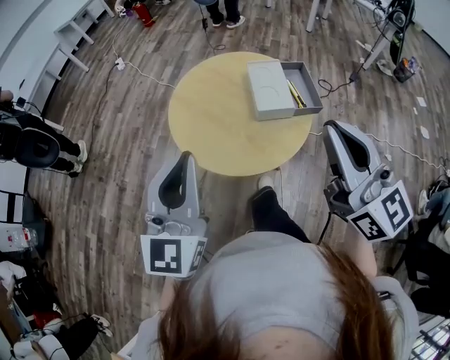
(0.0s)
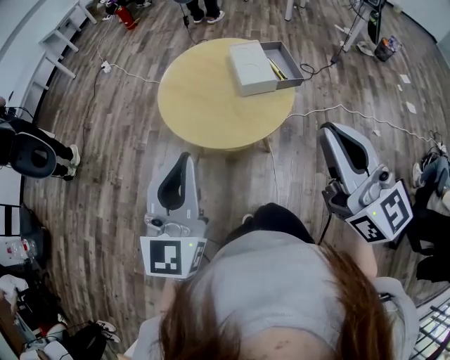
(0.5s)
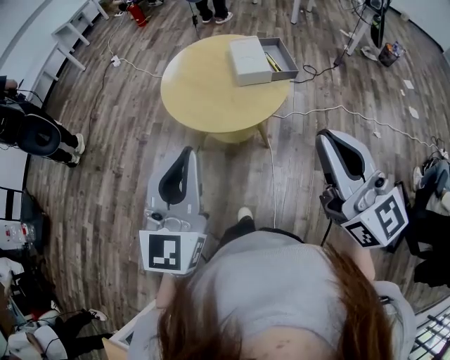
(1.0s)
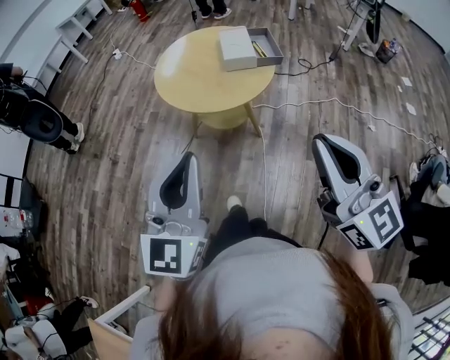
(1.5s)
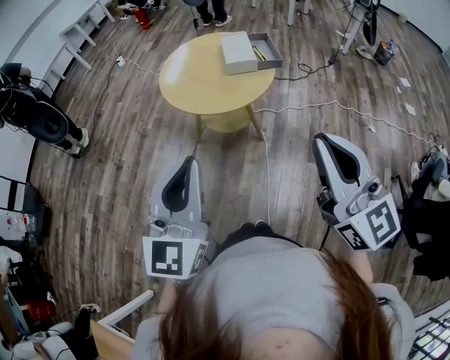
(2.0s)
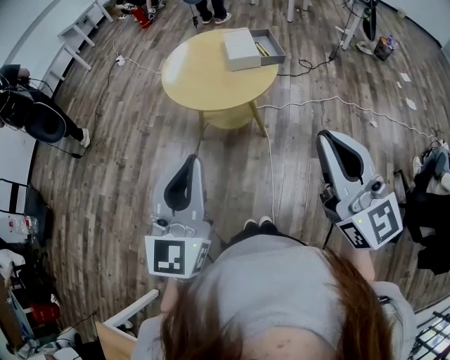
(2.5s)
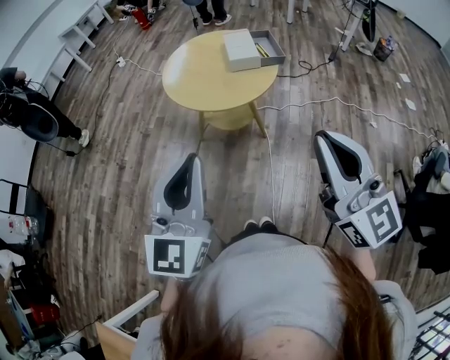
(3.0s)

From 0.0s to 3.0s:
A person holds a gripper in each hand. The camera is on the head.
From 0.0s to 1.5s: Both grippers travel together backward, some 25 cm.
From 1.5s to 3.0s: The grippers stay close to where they were, moving slightly.

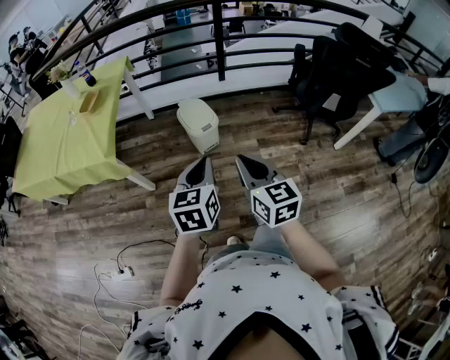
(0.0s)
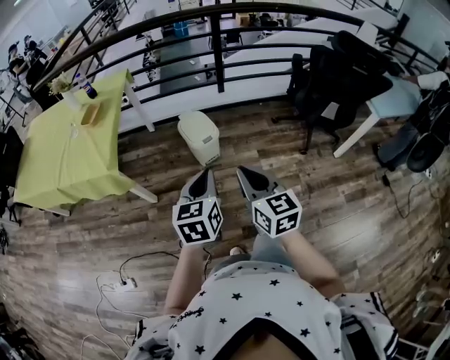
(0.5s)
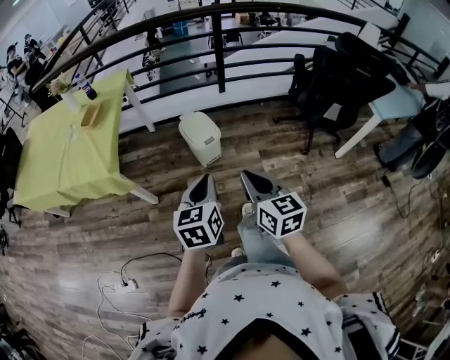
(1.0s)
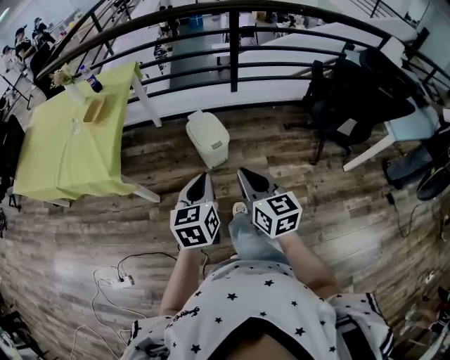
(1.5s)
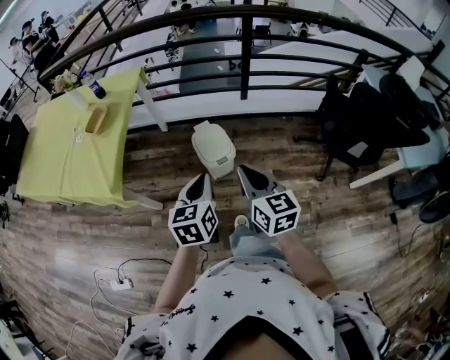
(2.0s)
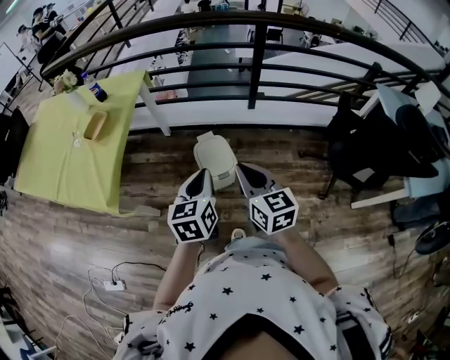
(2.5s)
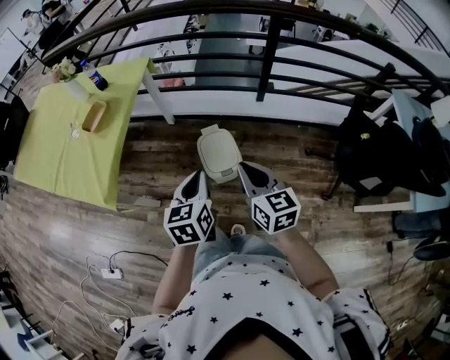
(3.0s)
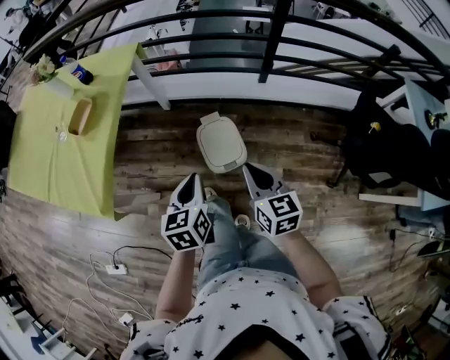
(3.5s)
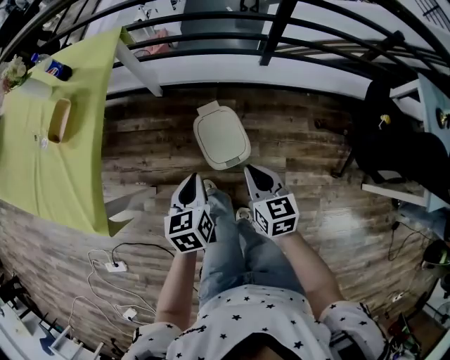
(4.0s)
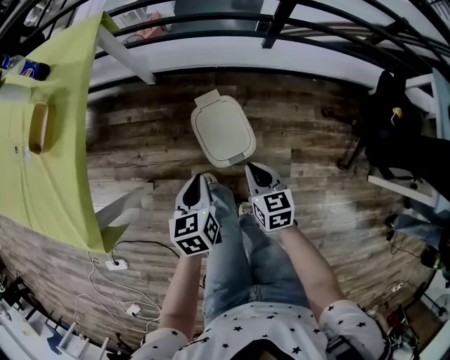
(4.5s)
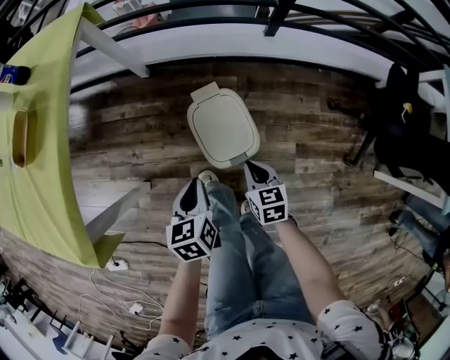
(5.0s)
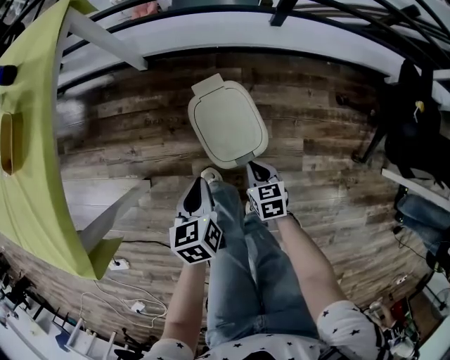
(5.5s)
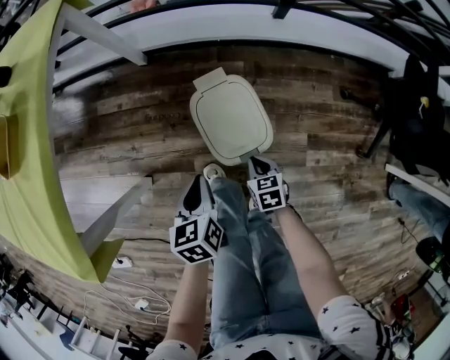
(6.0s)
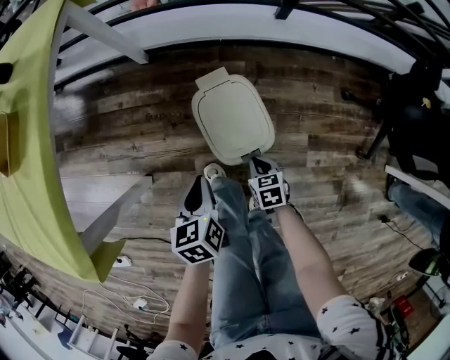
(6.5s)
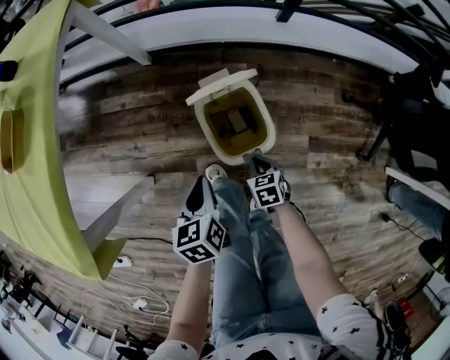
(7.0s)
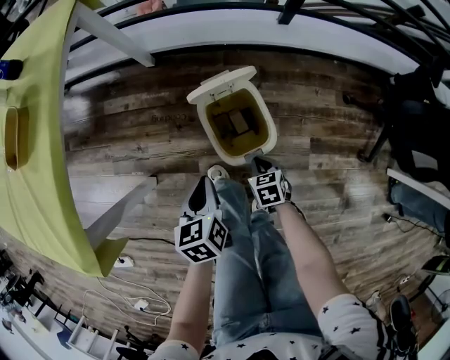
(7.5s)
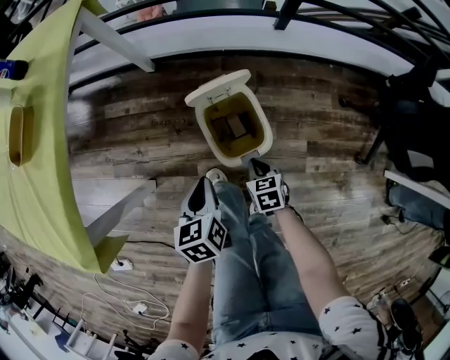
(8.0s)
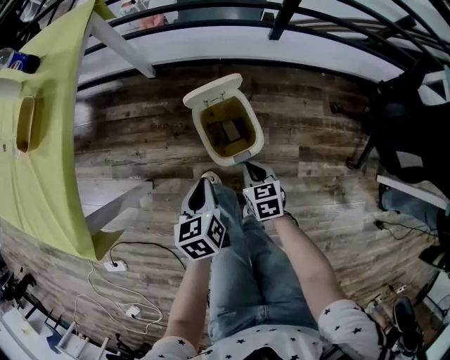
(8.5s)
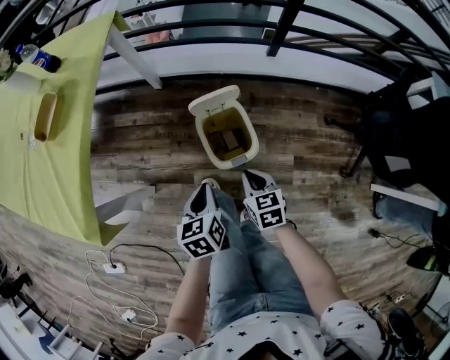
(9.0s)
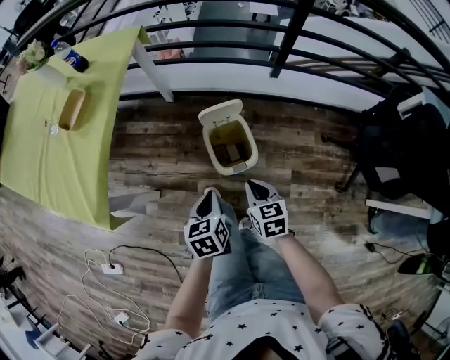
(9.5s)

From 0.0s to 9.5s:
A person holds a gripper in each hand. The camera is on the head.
From 0.0s to 2.0s: Both grippers move forward, about 20 cm.
From 2.0s to 4.0s: Both grippers move forward and downward, roughly 35 cm.
From 4.0s to 5.5s: The right gripper travels downward by approximately 35 cm, and swivels about 20 degrees; the left gripper moves downward, roughly 20 cm.
From 5.5s to 7.5s: There are only small adjustments of the grippers.
From 7.5s to 9.5s: The right gripper is displaced upward by roughly 30 cm, and swivels some 20 degrees. The left gripper travels upward and backward by some 20 cm.

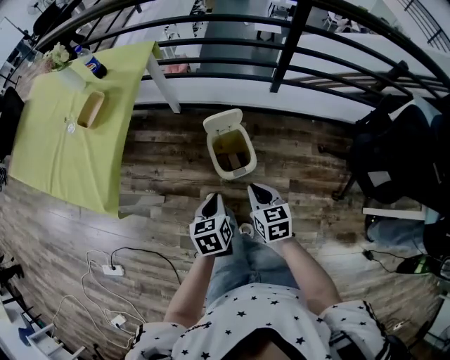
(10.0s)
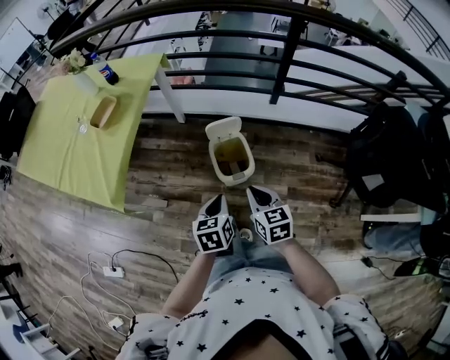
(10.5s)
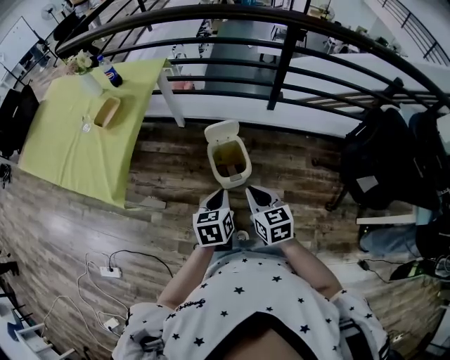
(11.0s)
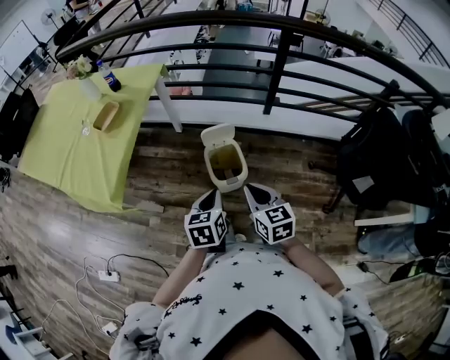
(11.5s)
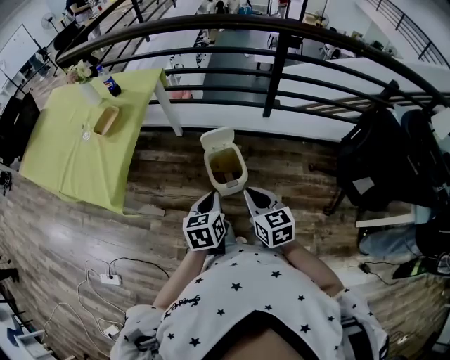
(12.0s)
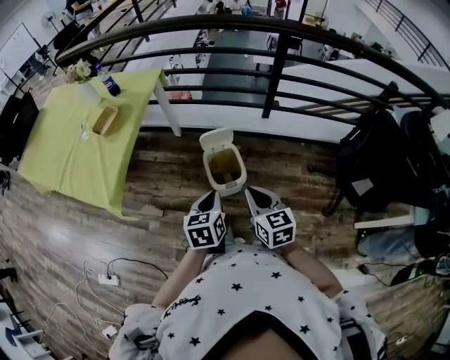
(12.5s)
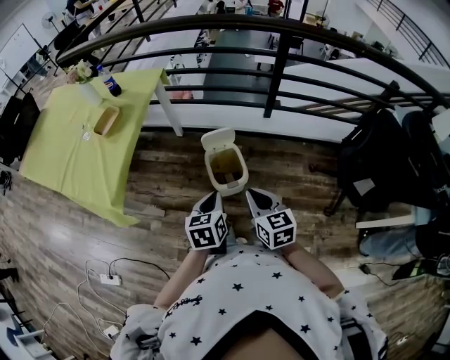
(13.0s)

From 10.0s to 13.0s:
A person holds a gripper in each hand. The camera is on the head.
From 10.0s to 11.5s: The left gripper moves upward, approximately 10 cm. The right gripper shifts roughly 15 cm upward and backward.
From 11.5s to 13.0s: Both grippers stay put.

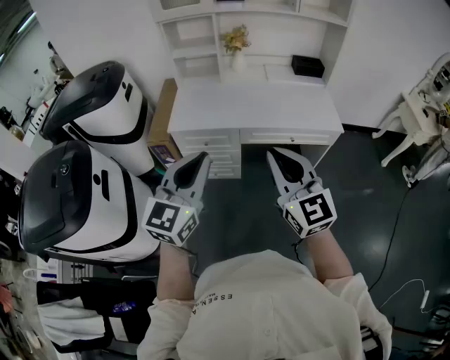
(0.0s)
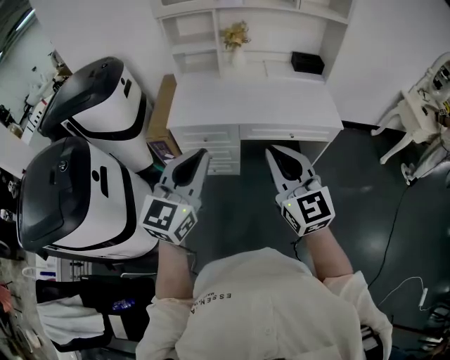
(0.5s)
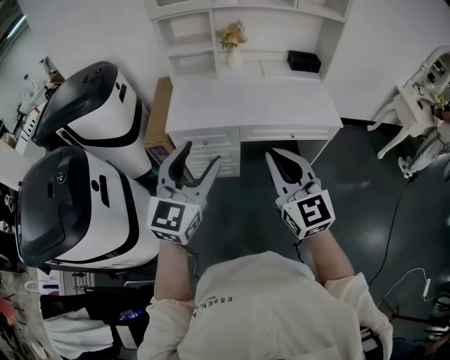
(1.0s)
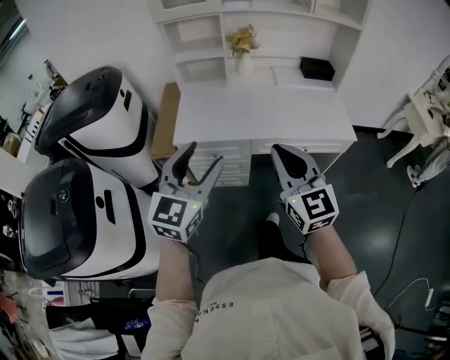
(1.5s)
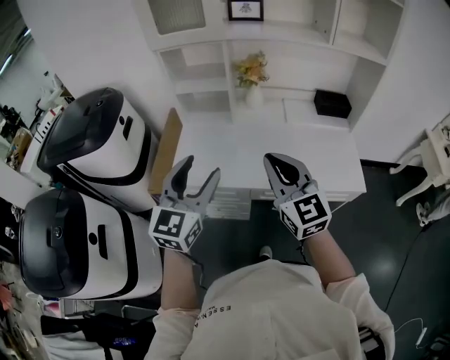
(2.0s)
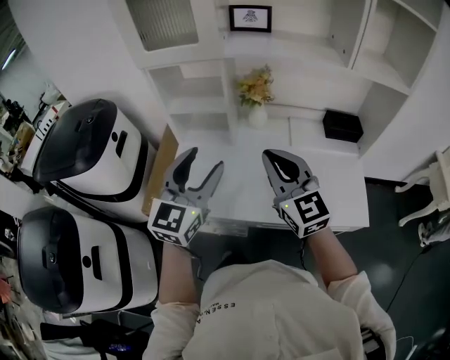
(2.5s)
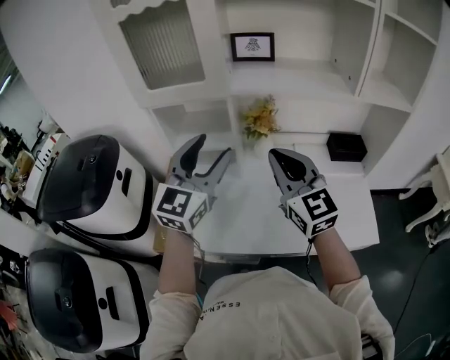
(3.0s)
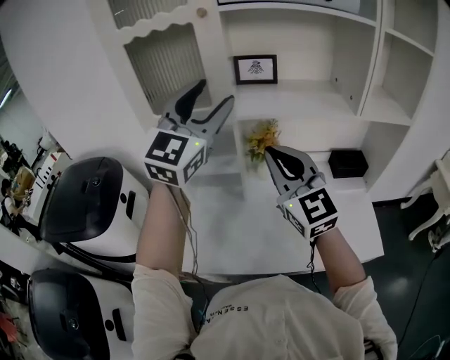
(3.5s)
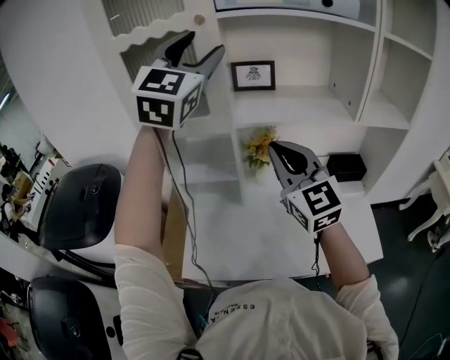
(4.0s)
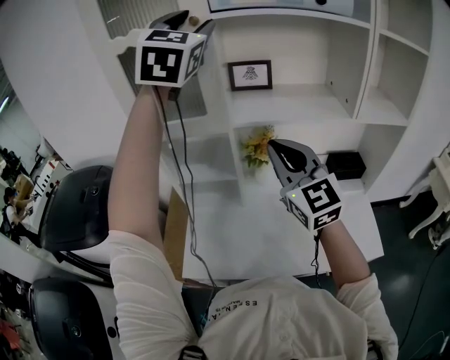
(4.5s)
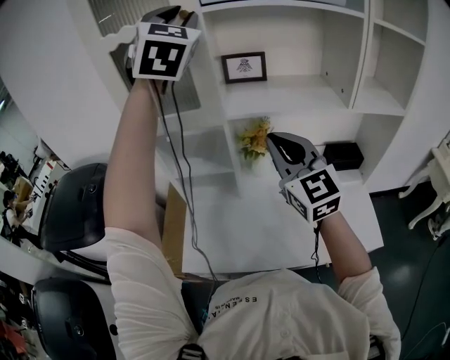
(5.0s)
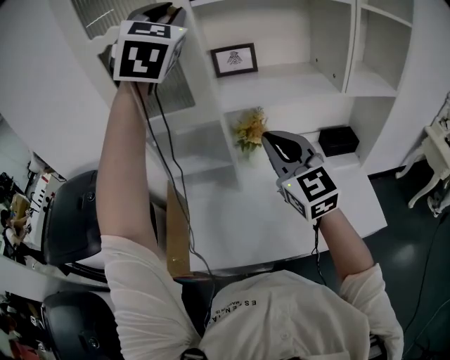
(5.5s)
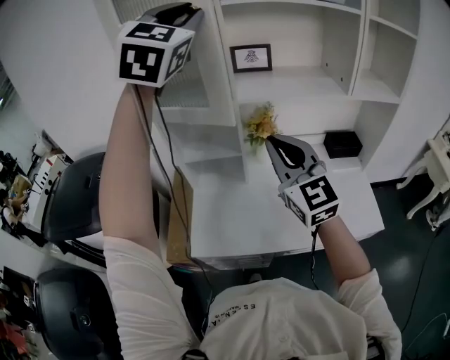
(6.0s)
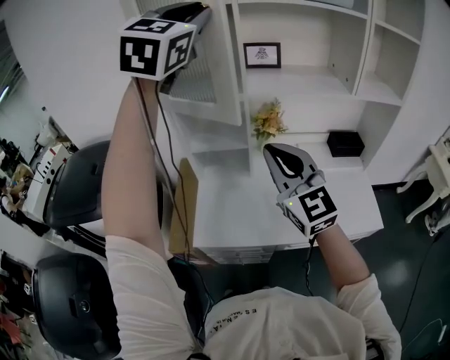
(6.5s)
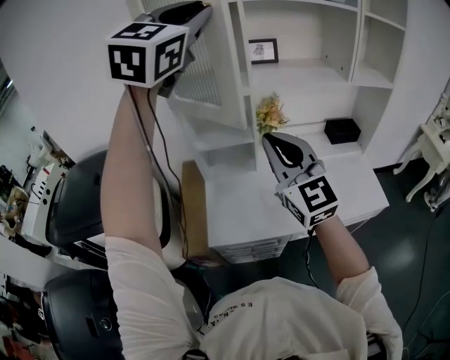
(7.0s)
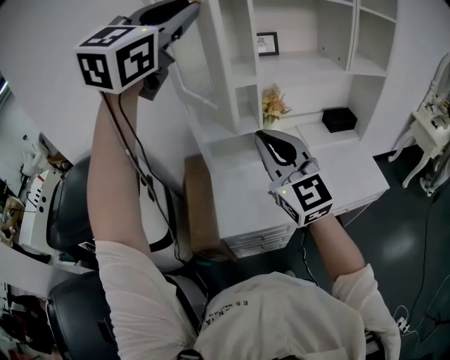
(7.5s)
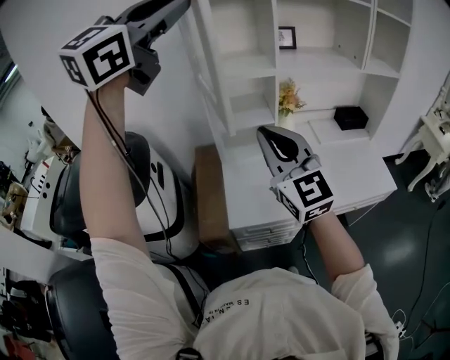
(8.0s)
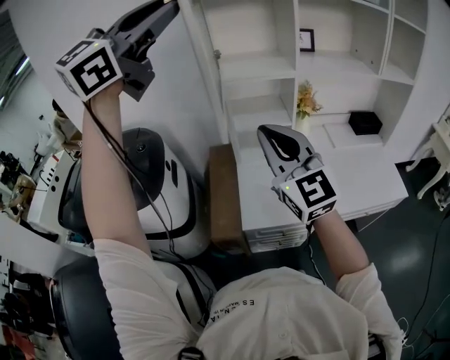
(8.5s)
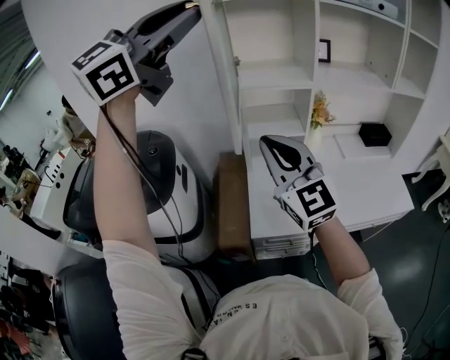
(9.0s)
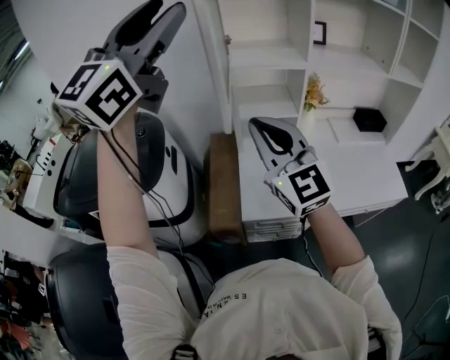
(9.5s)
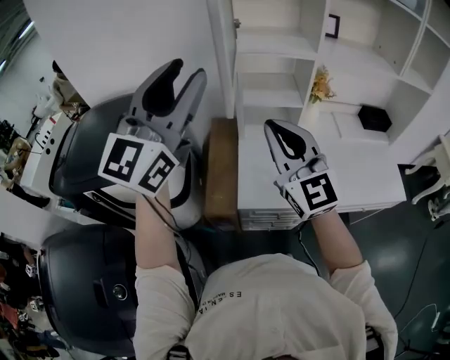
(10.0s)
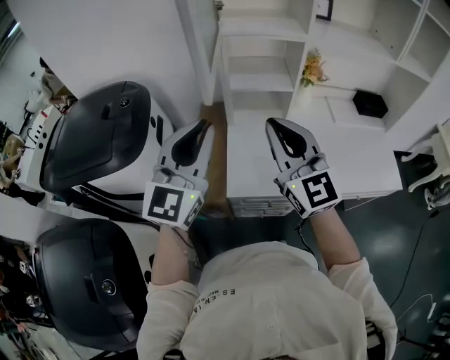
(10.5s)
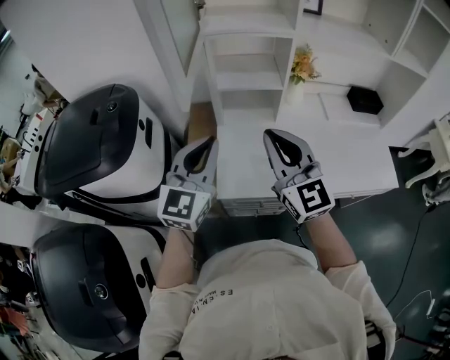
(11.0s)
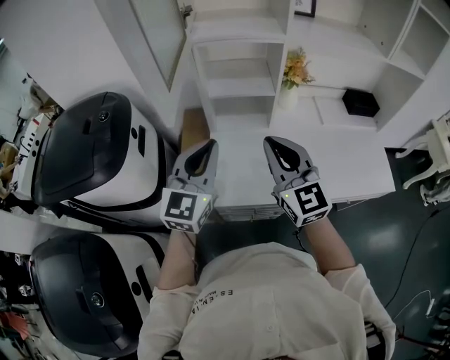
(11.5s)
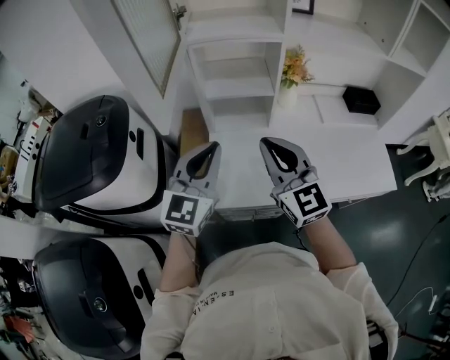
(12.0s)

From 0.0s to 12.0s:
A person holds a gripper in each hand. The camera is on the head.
From 0.0s to 2.0s: The grippers both shift forward by about 30 cm. The left gripper opens its fingers.
From 2.0s to 4.0s: The left gripper goes roughly 50 cm forward and upward, and changes its angle by about 30 degrees, while the right gripper travels forward and upward by roughly 35 cm.
From 4.0s to 6.0s: Both grippers move backward, some 5 cm. The left gripper closes.
From 6.0s to 8.0s: The left gripper is displaced backward and to the left by some 25 cm, and swivels some 40 degrees. The right gripper goes approximately 25 cm to the left and backward.
From 8.0s to 10.0s: The left gripper is displaced downward and to the left by roughly 20 cm, changes its angle by approximately 20 degrees, and opens up. The right gripper shifts roughly 5 cm to the left.
From 10.0s to 12.0s: The right gripper moves downward and to the right, approximately 15 cm, while the left gripper travels downward and to the right by about 25 cm, turns by roughly 20 degrees, and closes.
